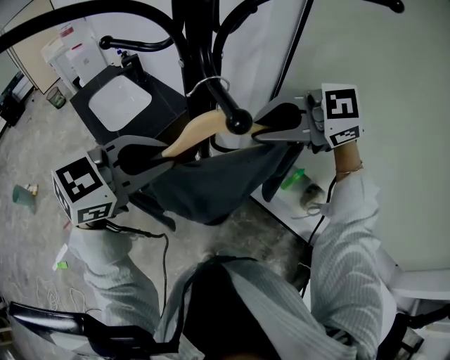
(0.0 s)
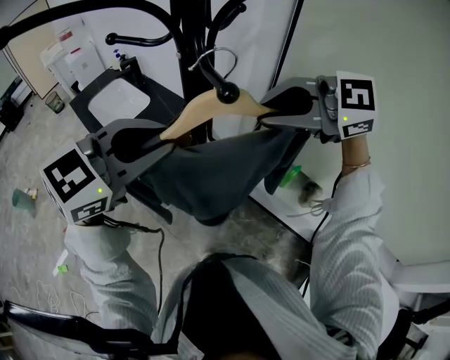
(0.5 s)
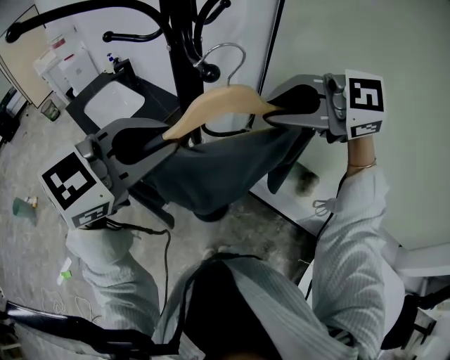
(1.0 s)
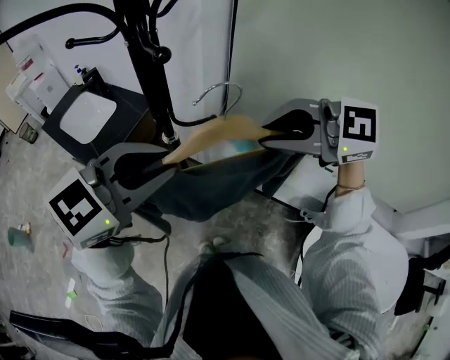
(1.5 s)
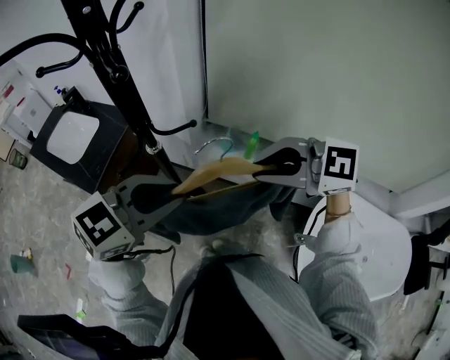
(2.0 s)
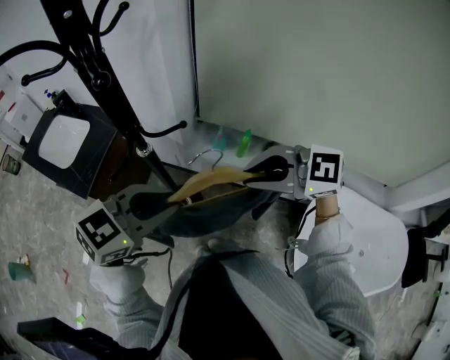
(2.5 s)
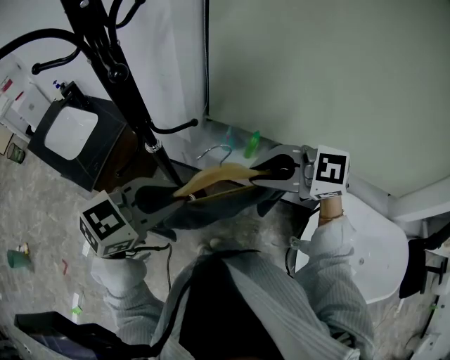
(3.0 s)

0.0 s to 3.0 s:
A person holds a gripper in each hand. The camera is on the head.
0.0 to 1.5 s: The left gripper ends up some 15 cm from where it was. The right gripper moves approximately 15 cm, and rotates some 20 degrees.
1.5 to 3.0 s: The grippers both shift downward by roughly 10 cm.

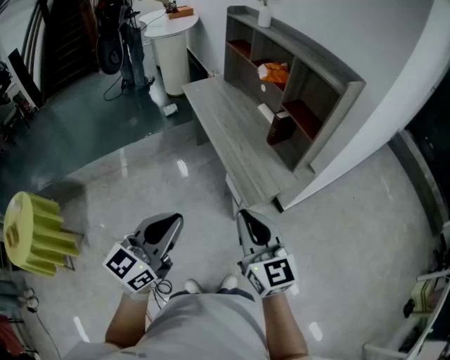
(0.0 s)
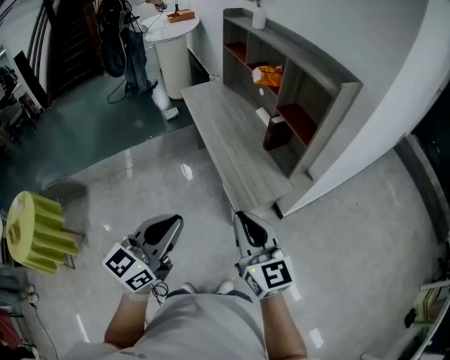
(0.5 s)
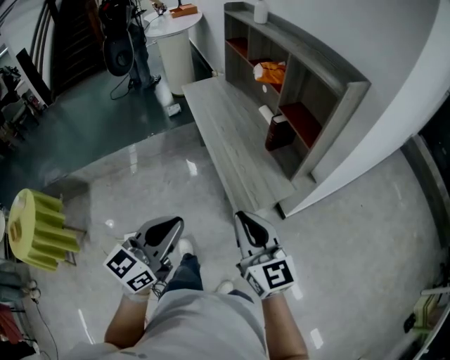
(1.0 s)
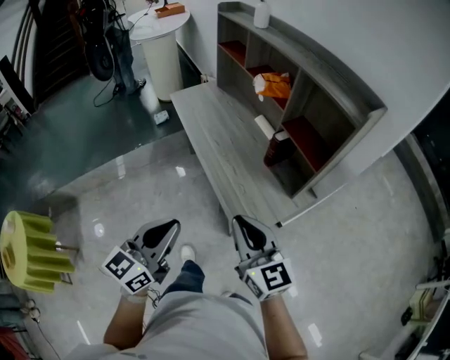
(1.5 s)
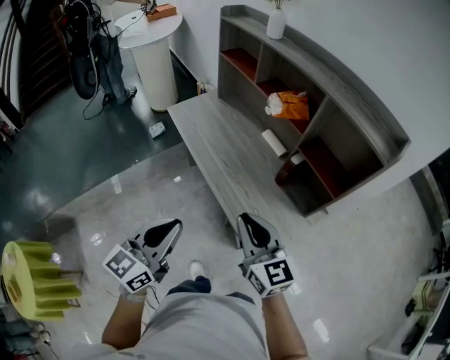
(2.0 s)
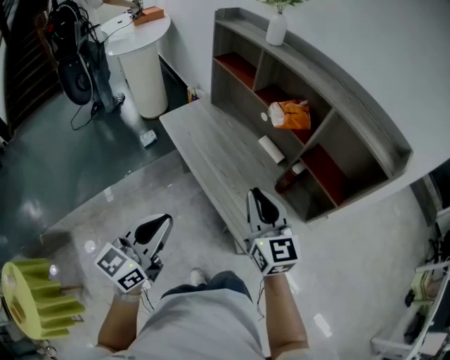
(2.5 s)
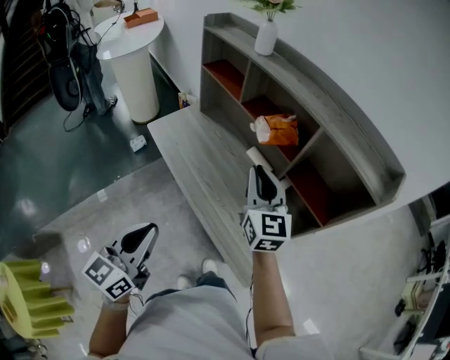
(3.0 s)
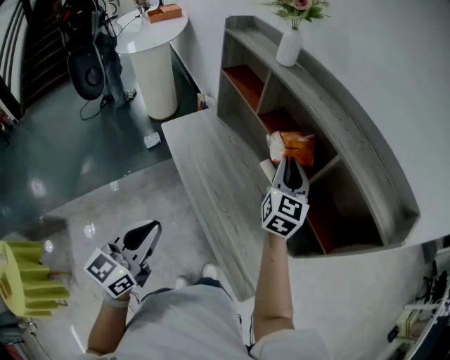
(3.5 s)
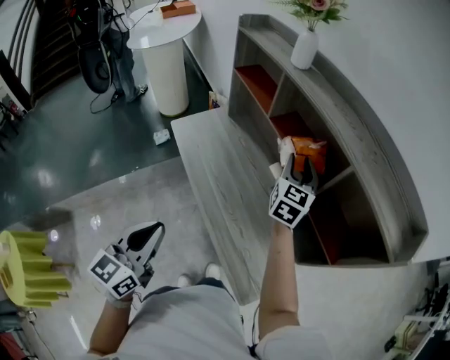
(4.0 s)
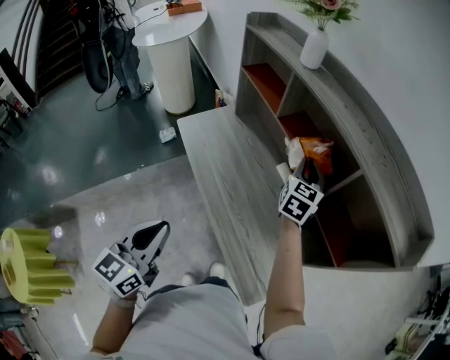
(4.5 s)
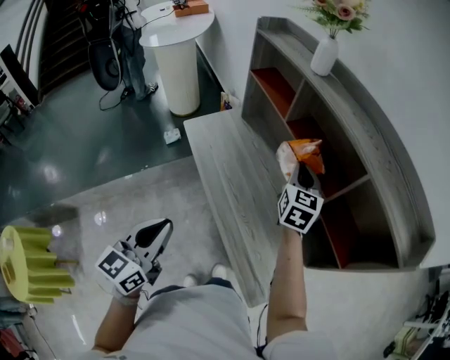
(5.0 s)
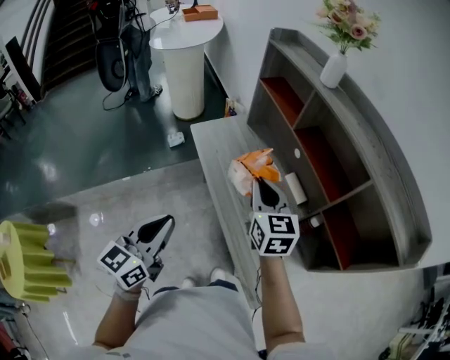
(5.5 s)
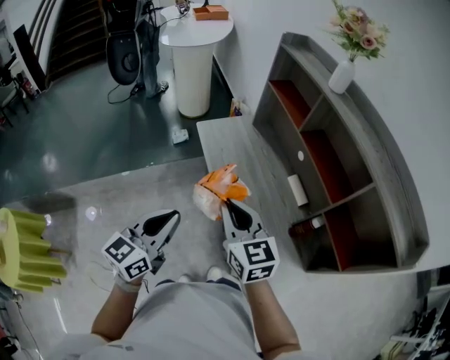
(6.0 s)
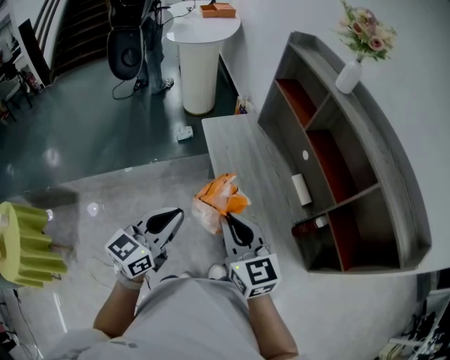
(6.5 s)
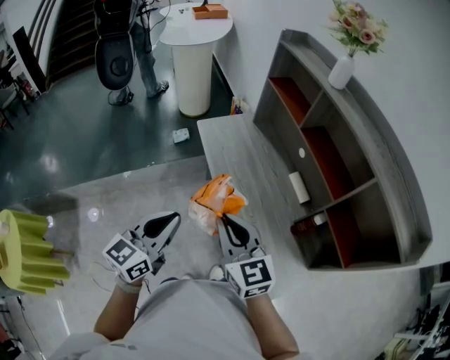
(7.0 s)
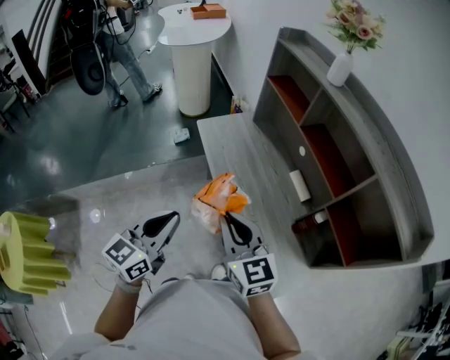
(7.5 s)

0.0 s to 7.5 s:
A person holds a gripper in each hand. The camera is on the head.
0.0 to 2.0 s: The grippers both shift forward by some 30 cm.
2.0 to 4.0 s: The left gripper shifts roughly 15 cm forward. Meanwhile the right gripper travels forward by some 40 cm, changes its angle by roughly 40 degrees, and opens up.
4.0 to 5.5 s: The left gripper shifts about 5 cm to the left; the right gripper travels to the left and backward by approximately 25 cm, turns by approximately 30 degrees, and closes up.
5.5 to 7.5 s: The right gripper shifts roughly 15 cm backward and to the left.

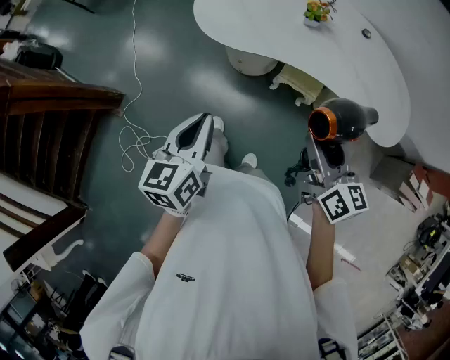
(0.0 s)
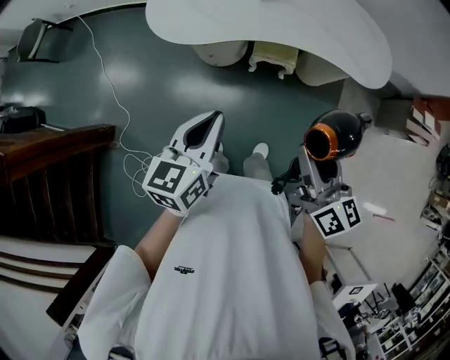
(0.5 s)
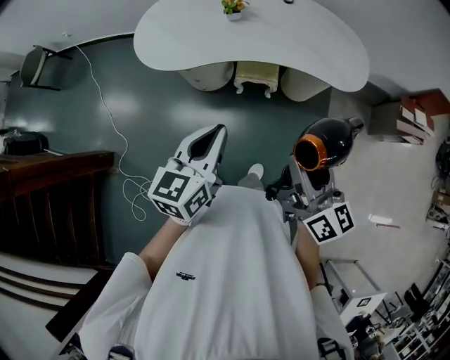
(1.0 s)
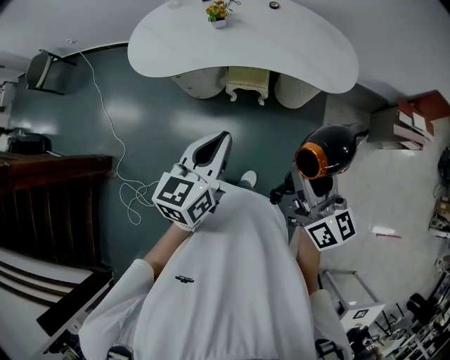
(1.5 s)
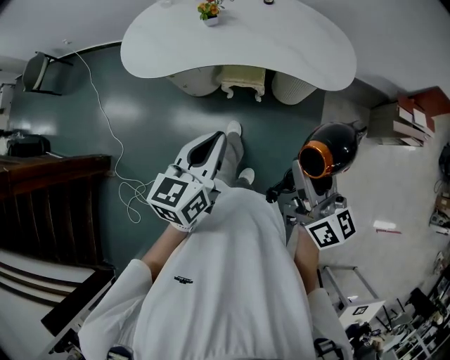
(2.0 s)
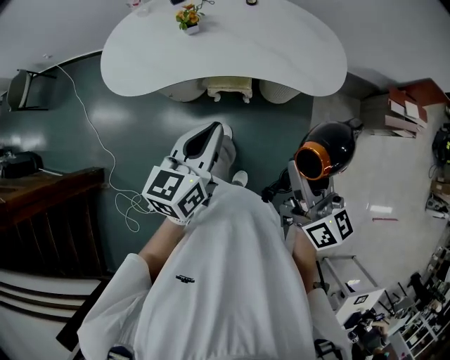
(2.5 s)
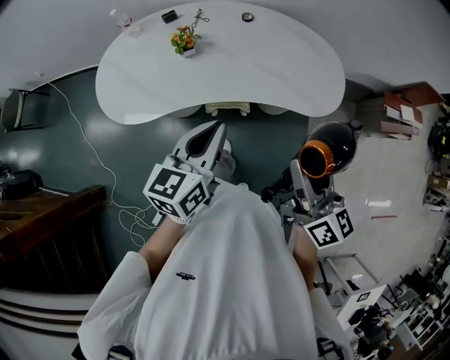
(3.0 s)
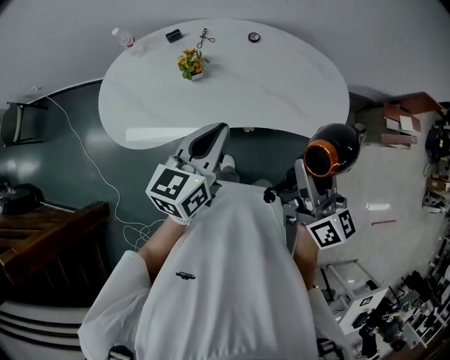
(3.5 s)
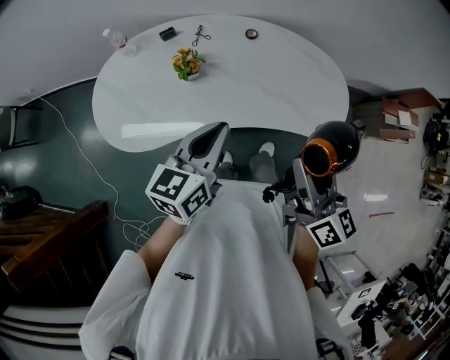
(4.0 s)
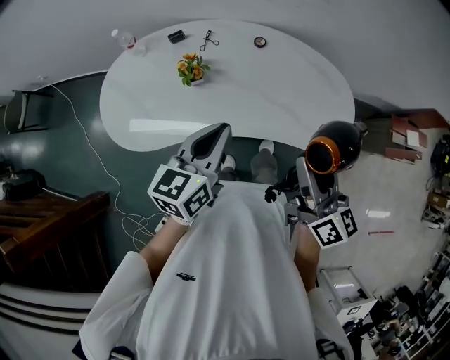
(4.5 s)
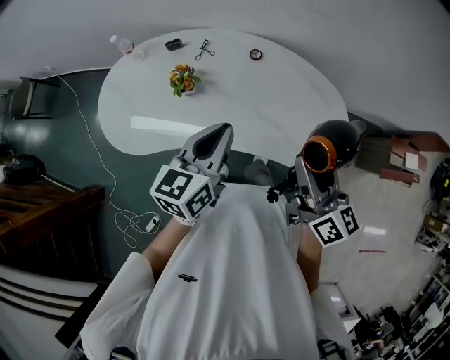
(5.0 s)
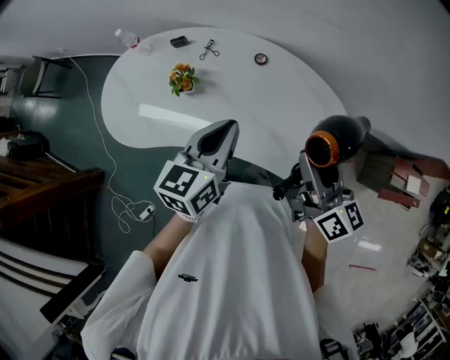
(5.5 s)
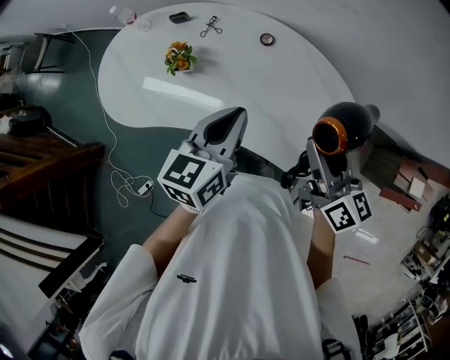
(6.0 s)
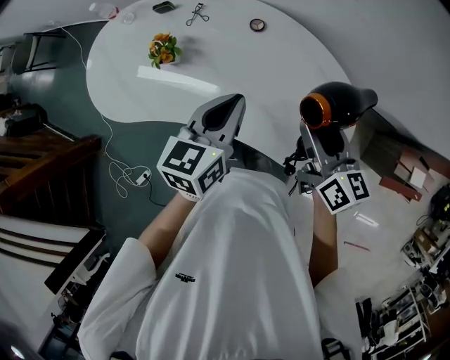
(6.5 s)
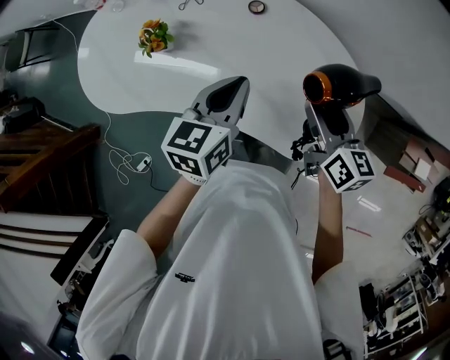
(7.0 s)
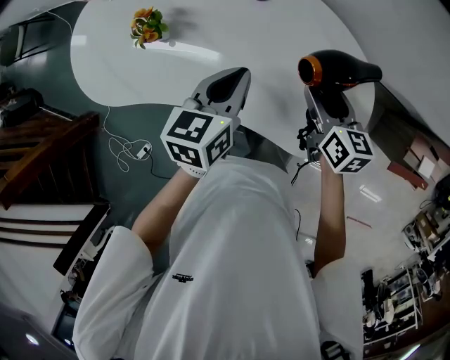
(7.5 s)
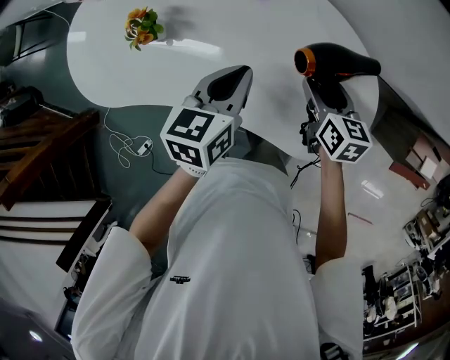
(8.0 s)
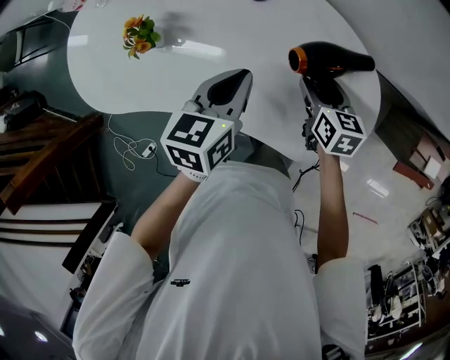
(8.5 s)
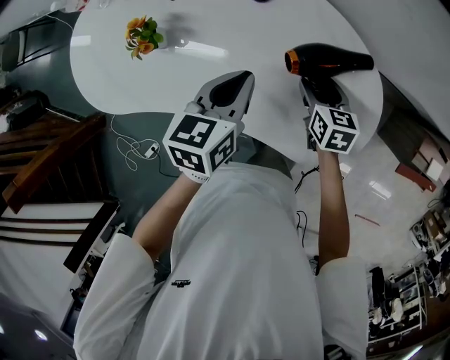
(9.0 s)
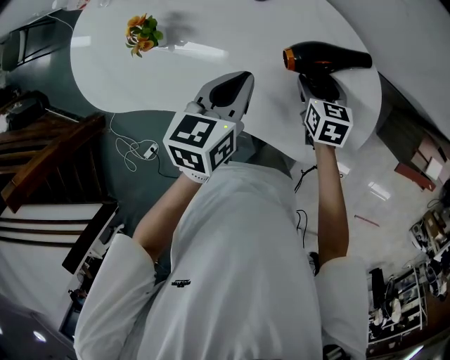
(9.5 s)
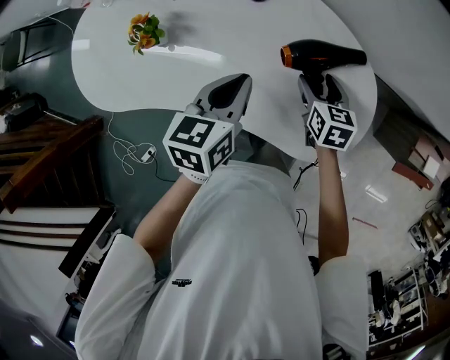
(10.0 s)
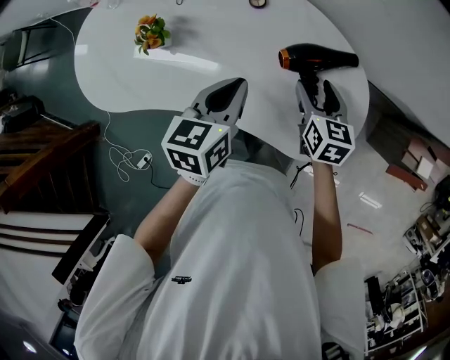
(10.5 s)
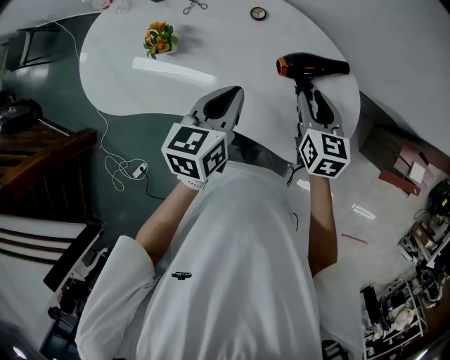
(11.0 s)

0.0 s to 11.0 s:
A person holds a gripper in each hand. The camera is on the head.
0.0 to 2.0 s: The left gripper is displaced to the right by some 25 cm, and swivels roughly 20 degrees. The right gripper travels to the right and backward by some 20 cm, and changes its angle by roughly 20 degrees.
2.0 to 3.5 s: Both grippers travel together forward, about 25 cm.
3.5 to 5.5 s: The grippers both shift forward and to the right by roughly 20 cm.
5.5 to 7.5 s: Both grippers travel together downward and forward, approximately 20 cm. The right gripper changes its angle by approximately 30 degrees.
7.5 to 9.0 s: The right gripper goes some 10 cm downward.
9.0 to 11.0 s: The left gripper moves upward and backward, some 10 cm; the right gripper moves upward, approximately 15 cm, and closes its fingers.

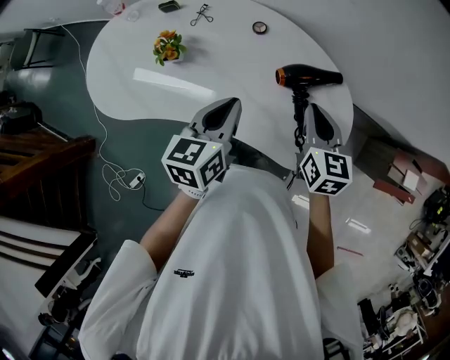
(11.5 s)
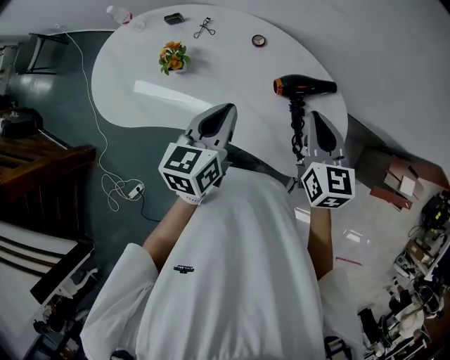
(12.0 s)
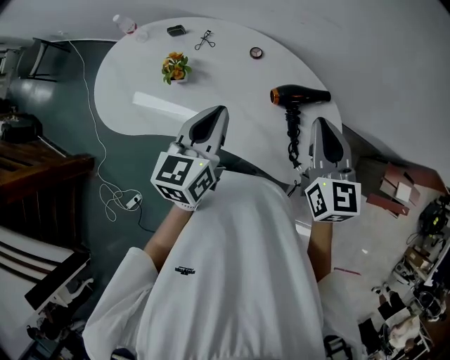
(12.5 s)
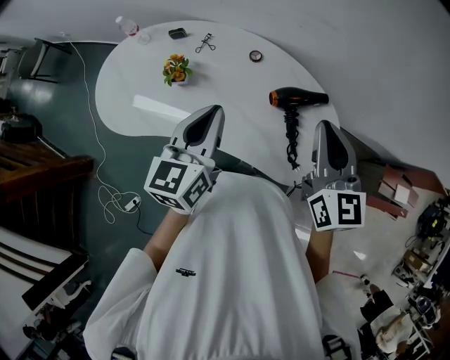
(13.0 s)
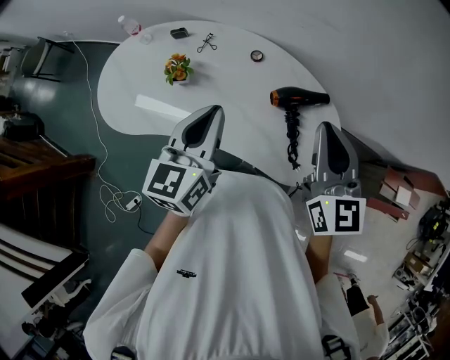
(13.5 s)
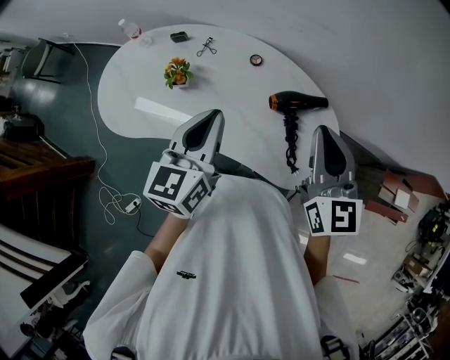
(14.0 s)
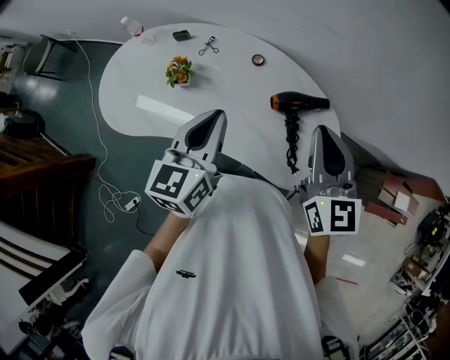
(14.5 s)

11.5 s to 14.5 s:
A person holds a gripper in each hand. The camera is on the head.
11.5 to 13.0 s: The left gripper moves upward, approximately 10 cm; the right gripper goes roughly 15 cm upward, and swivels roughly 20 degrees.
13.0 to 14.5 s: The grippers stay close to where they were, moving slightly.

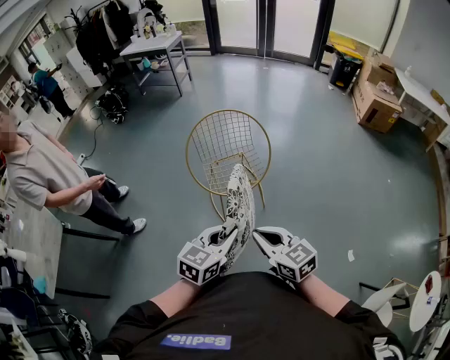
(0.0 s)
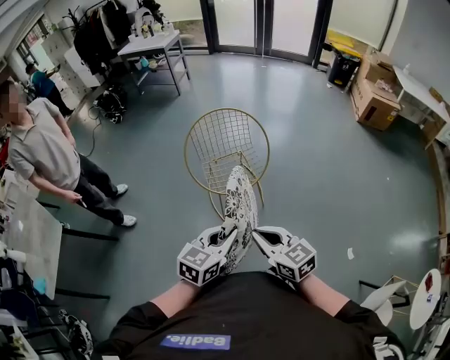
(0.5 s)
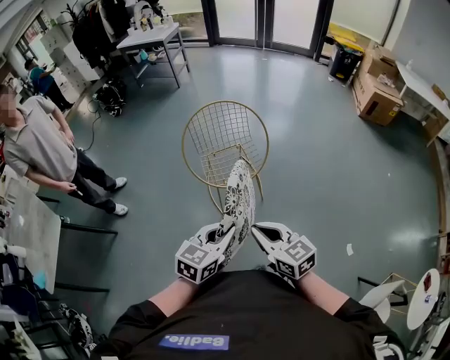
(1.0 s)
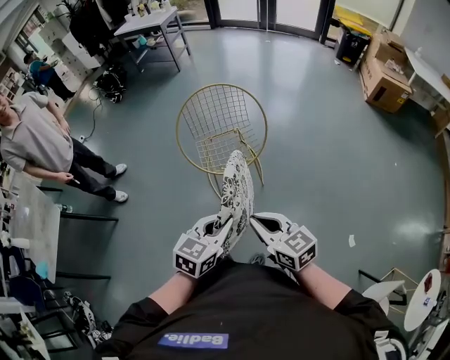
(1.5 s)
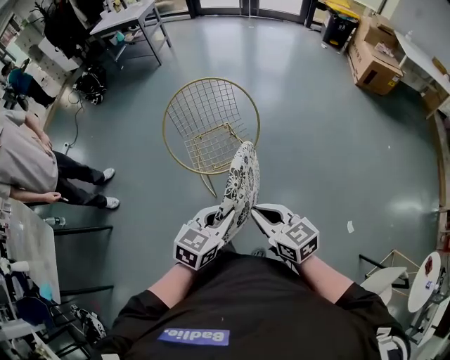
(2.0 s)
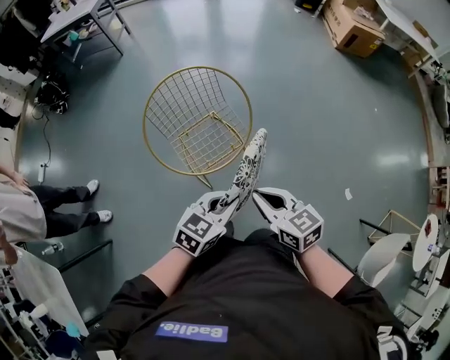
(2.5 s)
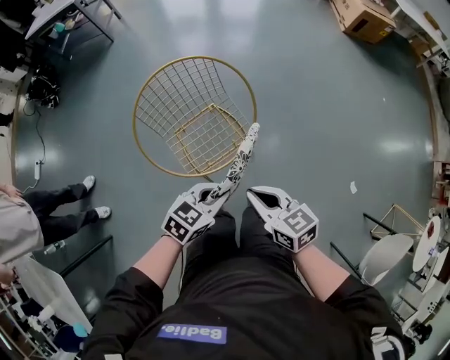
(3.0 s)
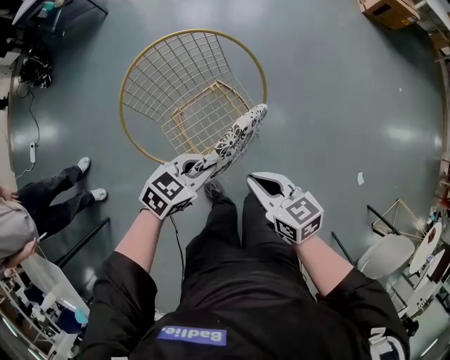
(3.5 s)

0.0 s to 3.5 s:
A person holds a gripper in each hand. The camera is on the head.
0.0 to 2.0 s: The left gripper heads forward and downward, covering about 10 cm. Meanwhile the right gripper moves forward, about 5 cm.
2.0 to 3.5 s: The grippers both shift forward, downward and to the left by approximately 30 cm. The left gripper swivels approximately 30 degrees.
